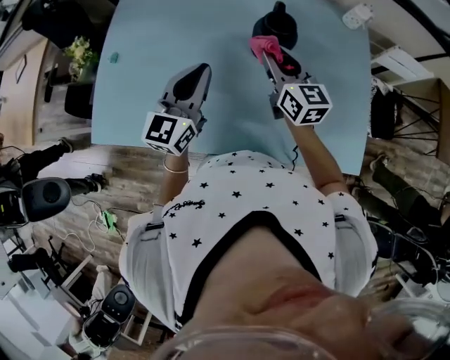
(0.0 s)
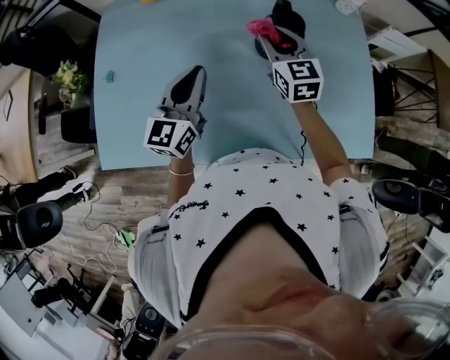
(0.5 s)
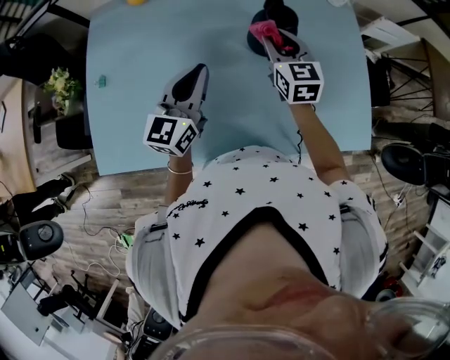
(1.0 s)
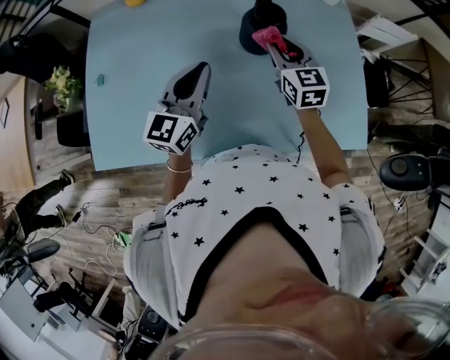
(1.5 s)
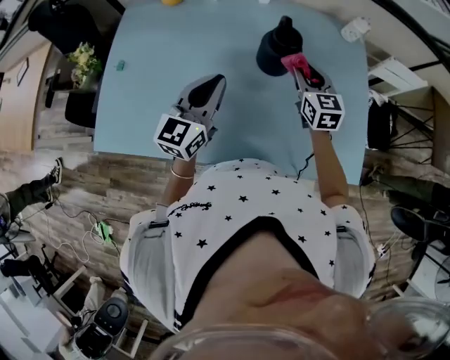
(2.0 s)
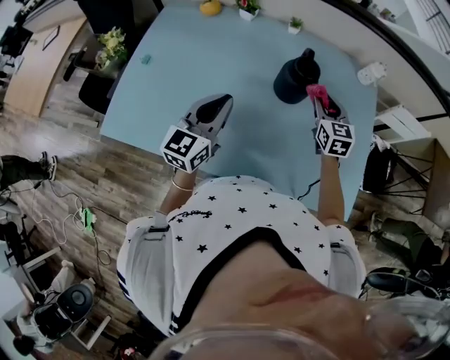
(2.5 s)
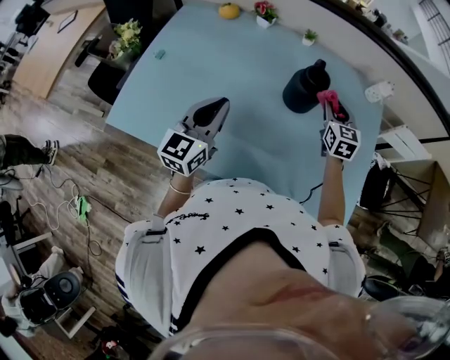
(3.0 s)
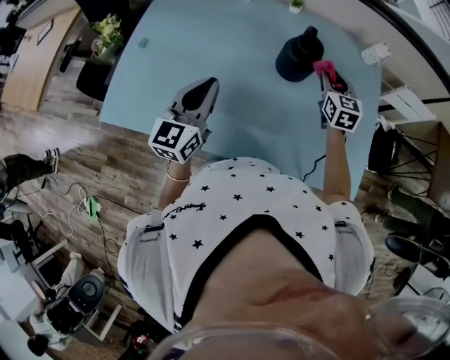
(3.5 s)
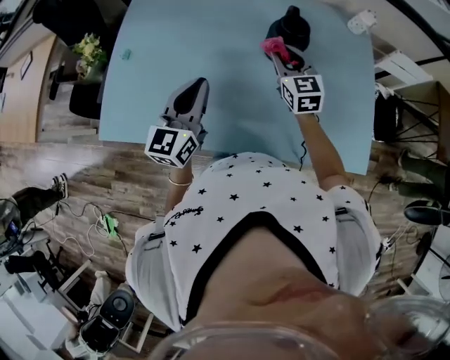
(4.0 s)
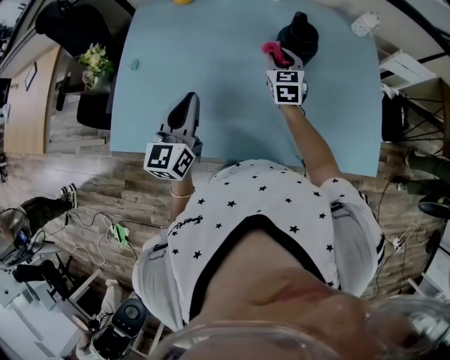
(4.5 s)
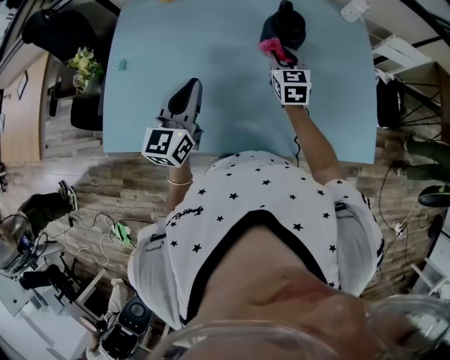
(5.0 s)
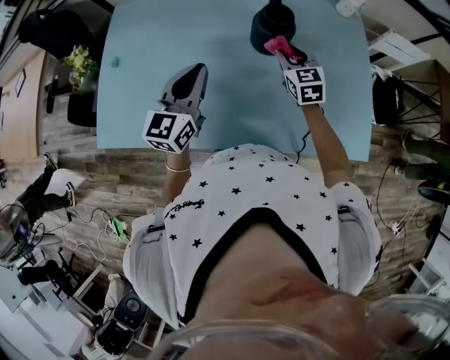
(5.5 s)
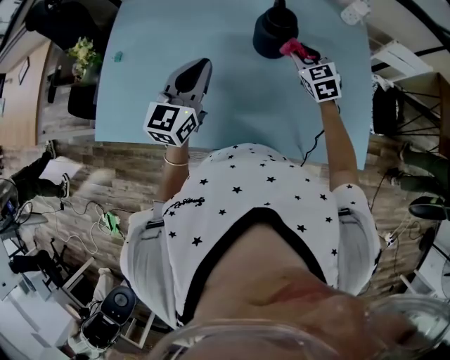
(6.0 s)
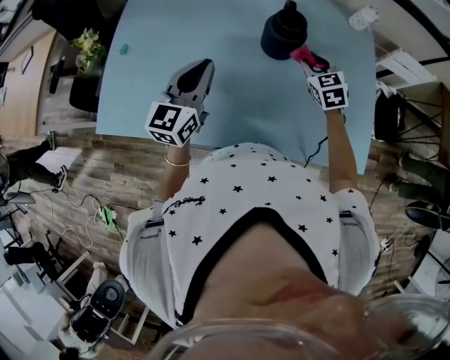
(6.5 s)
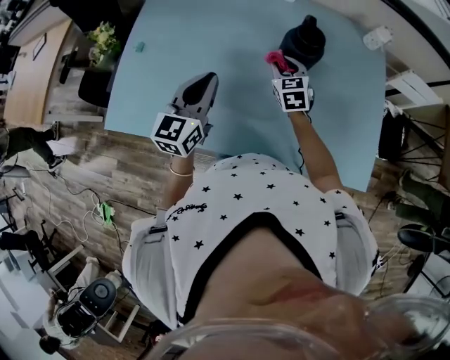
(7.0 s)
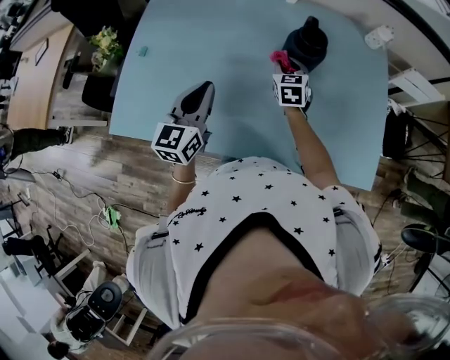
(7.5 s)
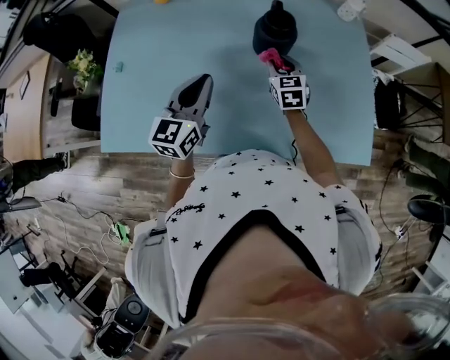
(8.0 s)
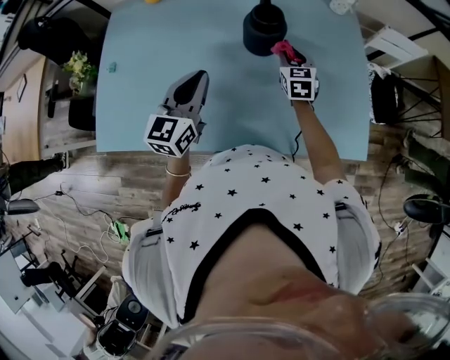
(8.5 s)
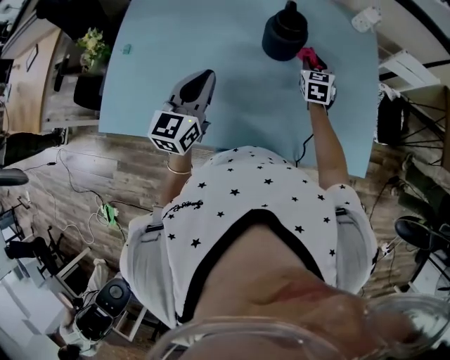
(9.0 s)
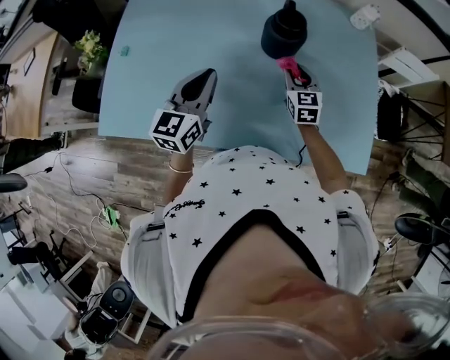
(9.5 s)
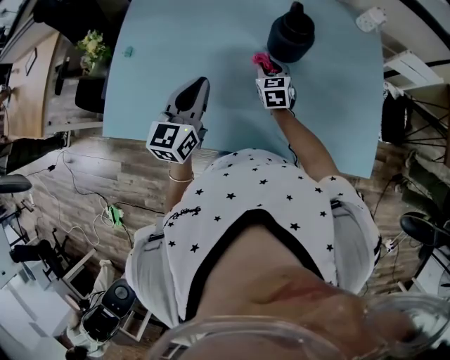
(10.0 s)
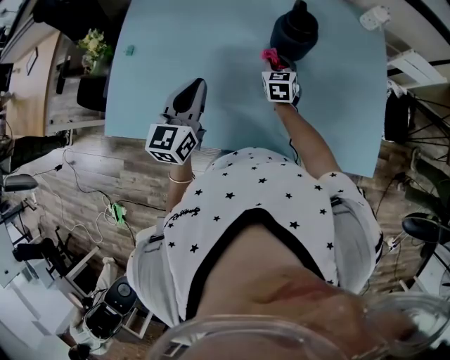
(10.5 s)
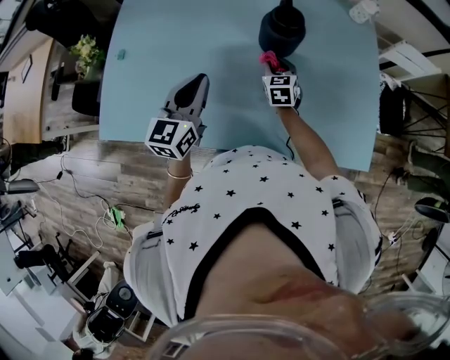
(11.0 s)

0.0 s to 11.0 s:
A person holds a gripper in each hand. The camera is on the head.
0.0 to 2.0 s: The right gripper goes some 5 cm to the right, and rotates some 20 degrees.
2.0 to 3.5 s: The left gripper travels to the left and backward by about 10 cm.
3.5 to 5.5 s: The left gripper changes place by some 5 cm. Meanwhile the right gripper moves about 15 cm to the left and comes back.
5.5 to 7.5 s: The grippers both shift to the left by about 10 cm.
7.5 to 9.0 s: The right gripper travels to the right by some 15 cm, while the left gripper shifts about 5 cm to the right.
9.0 to 11.0 s: The right gripper shifts approximately 10 cm to the left.

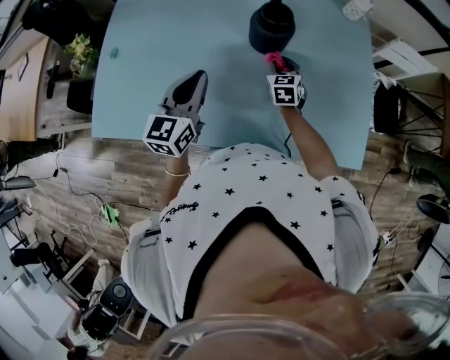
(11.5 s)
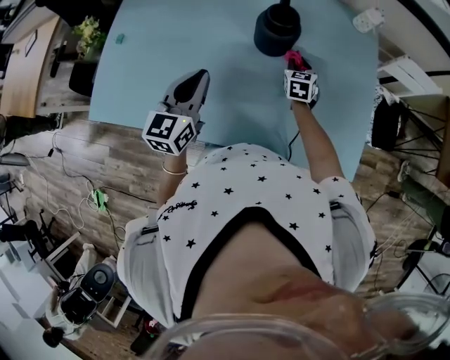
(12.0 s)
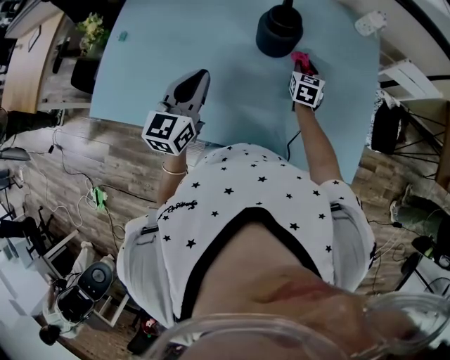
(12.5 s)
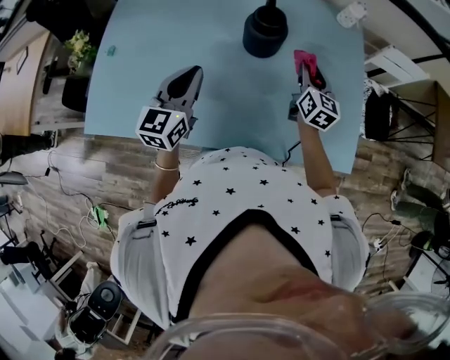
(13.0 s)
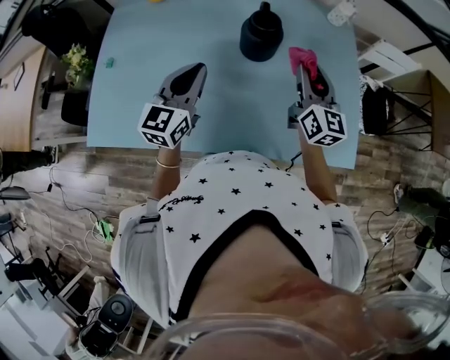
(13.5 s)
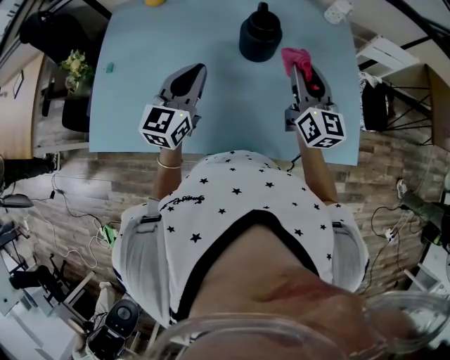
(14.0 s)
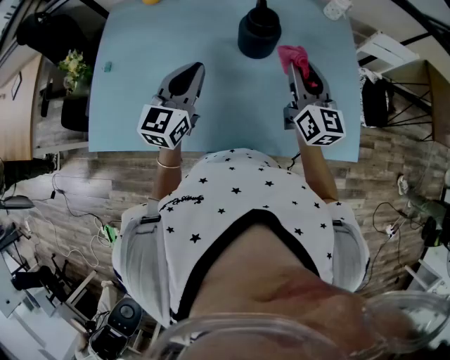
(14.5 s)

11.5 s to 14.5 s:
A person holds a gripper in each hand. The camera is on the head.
11.5 to 13.0 s: The right gripper moves upward and to the right, about 15 cm, and swivels approximately 30 degrees.
13.0 to 14.5 s: The right gripper travels upward, backward and to the left by some 15 cm.

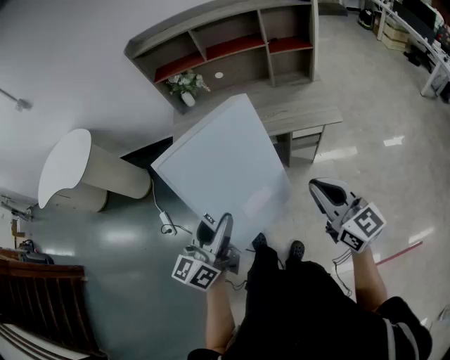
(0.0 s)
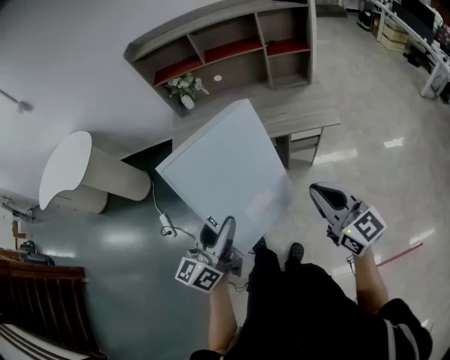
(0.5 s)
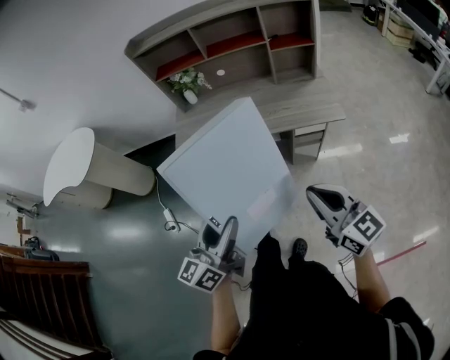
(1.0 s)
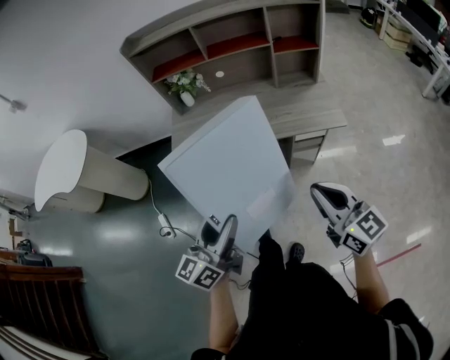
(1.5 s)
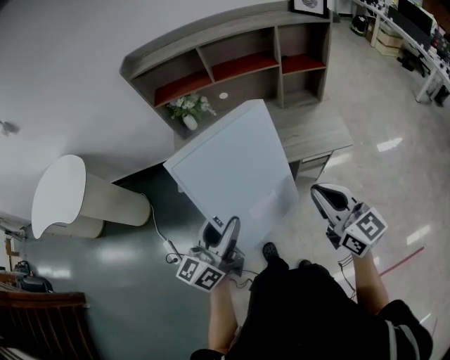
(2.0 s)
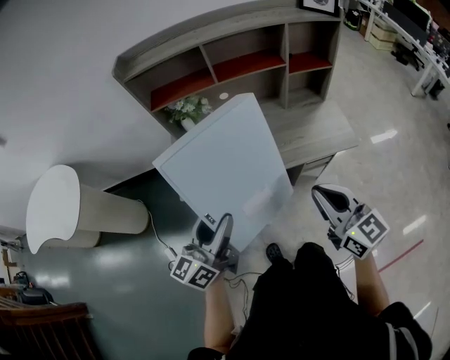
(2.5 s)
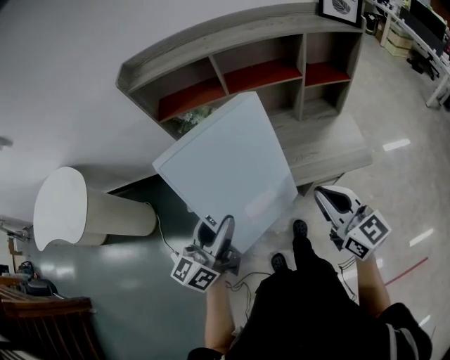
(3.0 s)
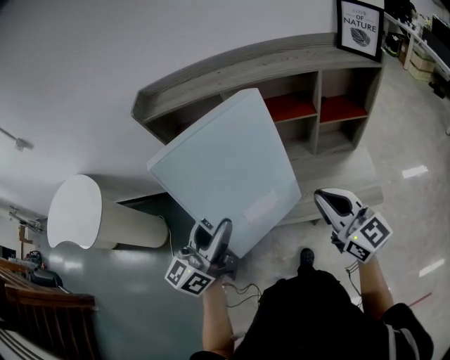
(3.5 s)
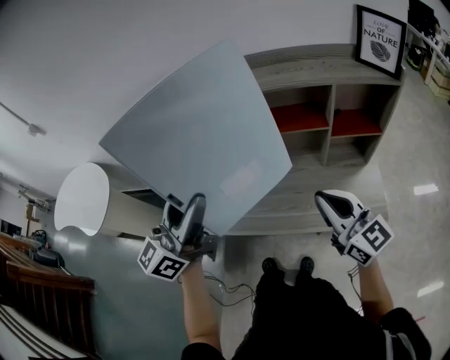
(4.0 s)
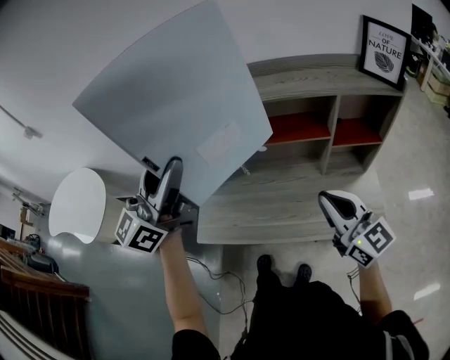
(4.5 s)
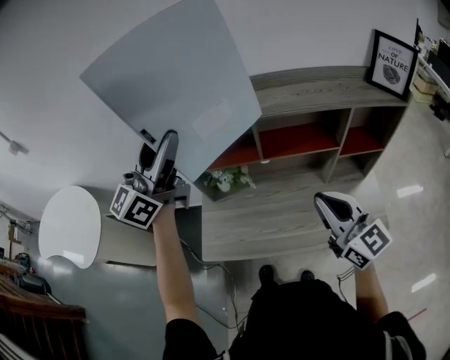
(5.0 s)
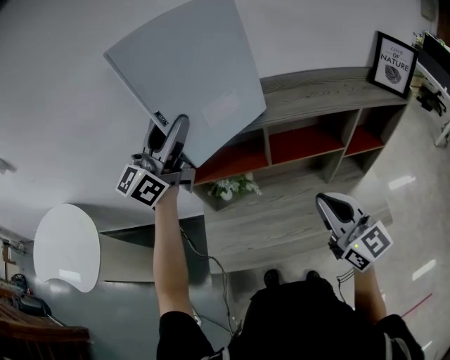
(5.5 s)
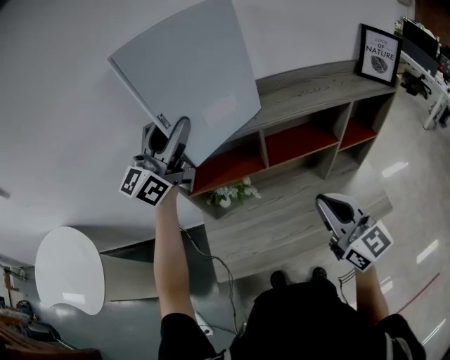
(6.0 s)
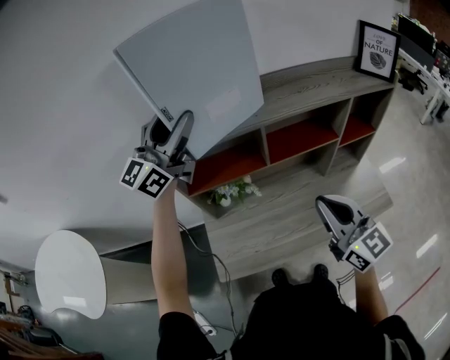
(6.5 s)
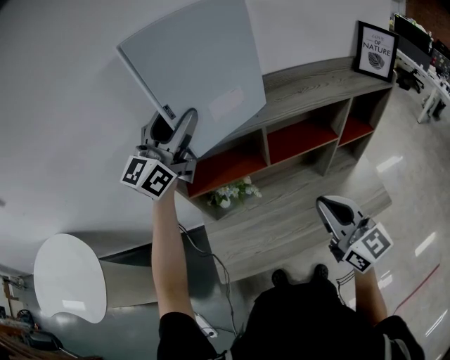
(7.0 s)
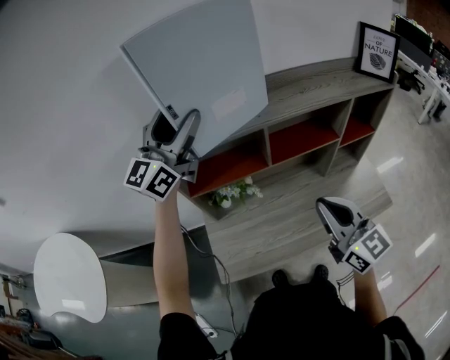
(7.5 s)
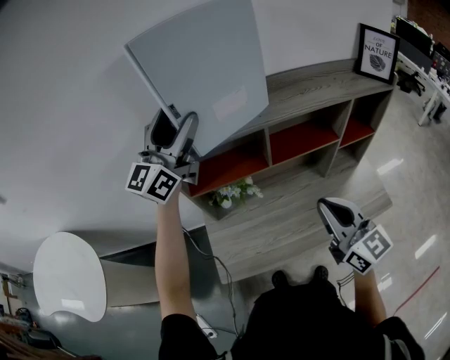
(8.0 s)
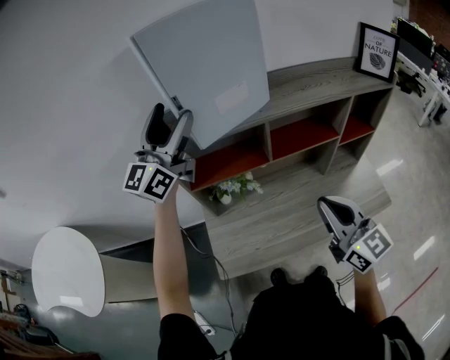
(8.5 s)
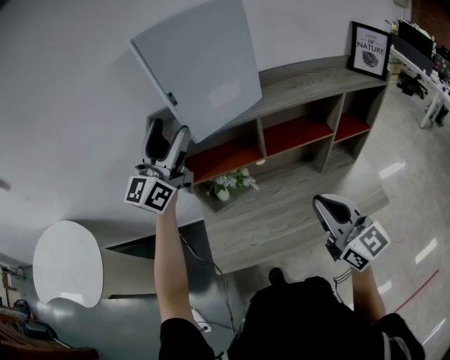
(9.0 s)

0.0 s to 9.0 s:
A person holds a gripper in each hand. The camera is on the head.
0.0 to 2.0 s: The grippers both shift forward by some 15 cm.
2.0 to 4.5 s: The left gripper shifts some 40 cm forward and upward, and changes its angle by some 30 degrees, while the right gripper moves forward, about 30 cm.
4.5 to 7.0 s: The right gripper moves to the left, about 15 cm, and changes its angle by some 20 degrees, while the left gripper moves forward and to the left, about 25 cm.
7.0 to 9.0 s: The left gripper goes about 5 cm backward.

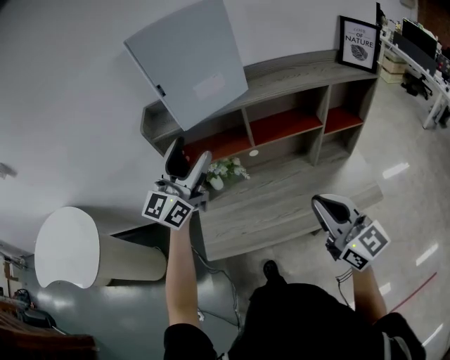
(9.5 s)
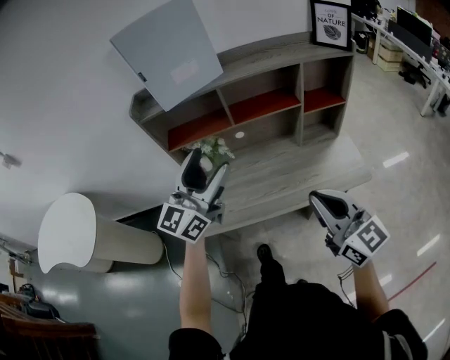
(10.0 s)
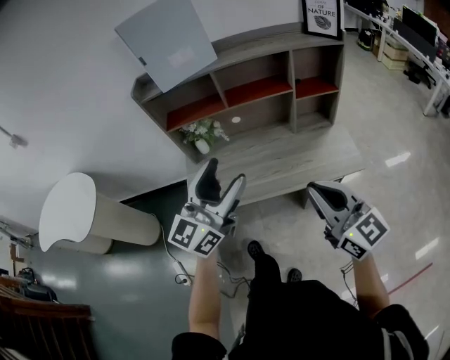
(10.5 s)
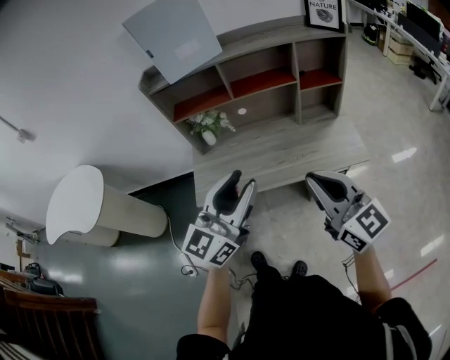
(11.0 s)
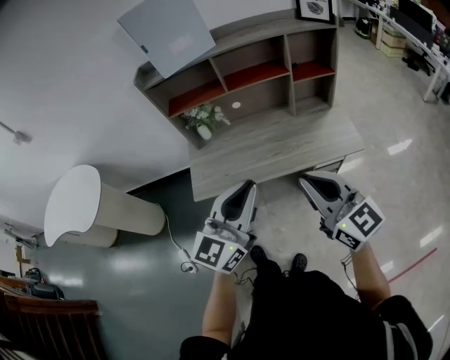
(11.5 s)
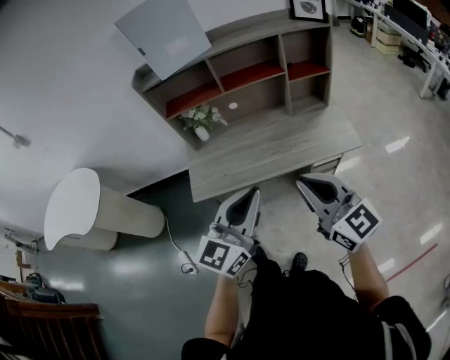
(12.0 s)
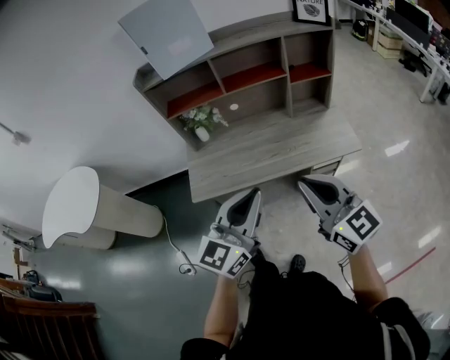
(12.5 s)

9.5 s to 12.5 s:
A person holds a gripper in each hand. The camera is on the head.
9.5 to 11.0 s: The right gripper heads backward and to the right, covering roughly 20 cm. The left gripper travels backward and to the right by about 35 cm, and closes its fingers.
11.0 to 12.5 s: The left gripper moves backward, roughly 5 cm, and closes its fingers; the right gripper changes place by some 5 cm.
